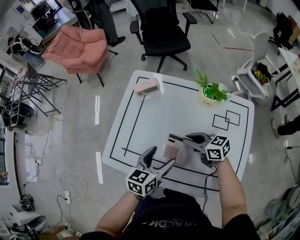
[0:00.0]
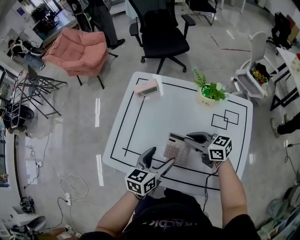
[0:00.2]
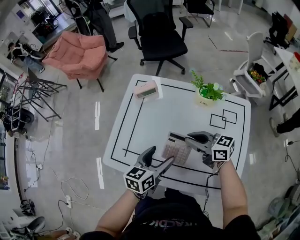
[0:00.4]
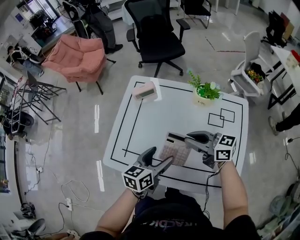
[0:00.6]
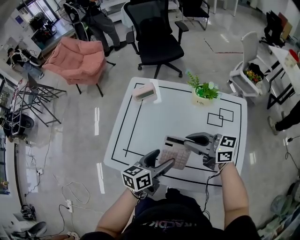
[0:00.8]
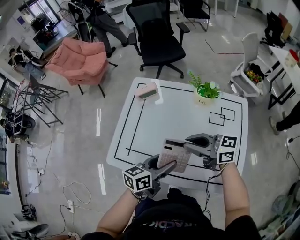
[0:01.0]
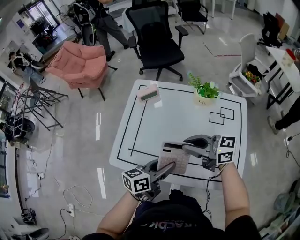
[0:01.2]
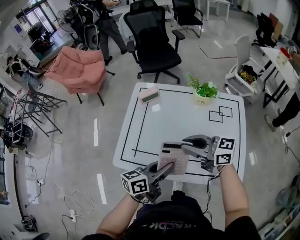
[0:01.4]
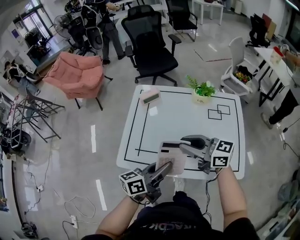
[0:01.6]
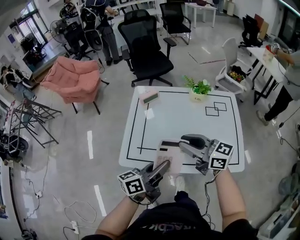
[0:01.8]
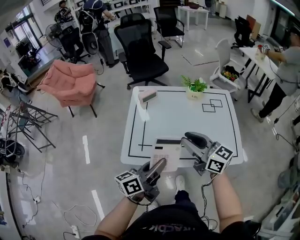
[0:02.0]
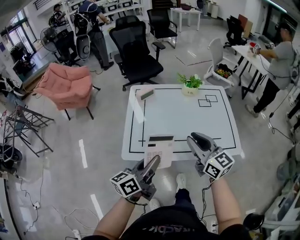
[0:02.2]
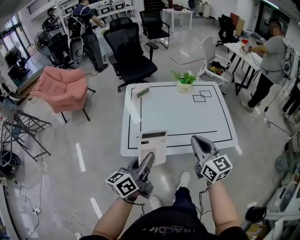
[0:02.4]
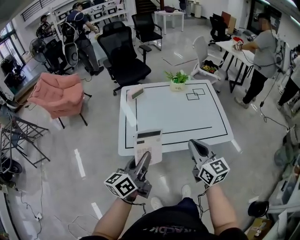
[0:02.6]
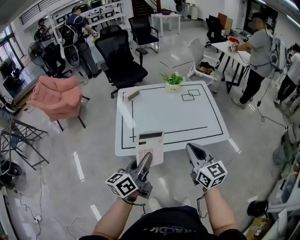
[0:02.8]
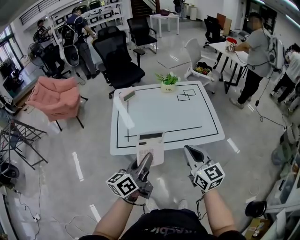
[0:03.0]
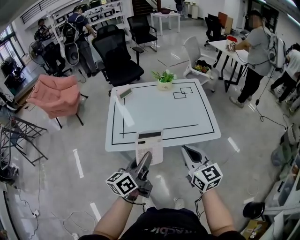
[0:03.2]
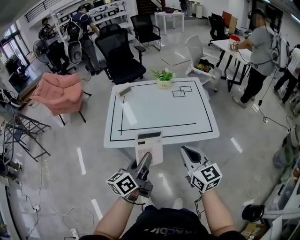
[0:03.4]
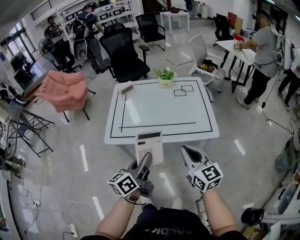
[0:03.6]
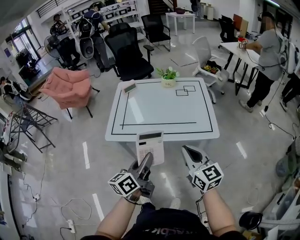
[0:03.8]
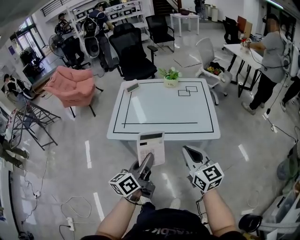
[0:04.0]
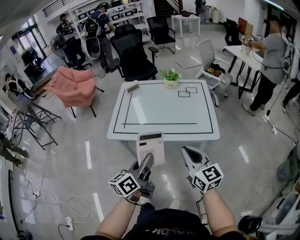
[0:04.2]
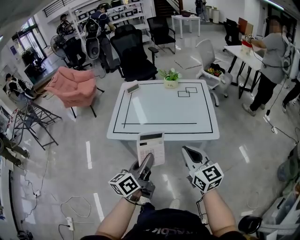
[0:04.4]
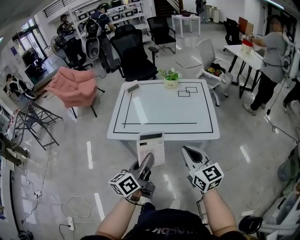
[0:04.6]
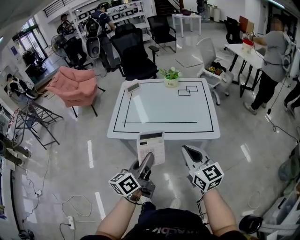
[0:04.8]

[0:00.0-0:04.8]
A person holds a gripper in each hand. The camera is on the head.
0:00.0 to 0:01.6: The right gripper is displaced upward by about 15 cm, and swivels some 20 degrees, while the left gripper moves roughly 15 cm, rotates some 40 degrees, and closes.
0:01.6 to 0:03.2: Both grippers move backward, approximately 20 cm. The right gripper turns by about 50 degrees.
0:03.2 to 0:04.8: The right gripper goes roughly 5 cm to the right. The left gripper shifts some 10 cm to the right and backward.

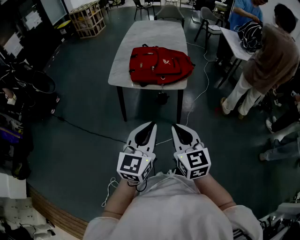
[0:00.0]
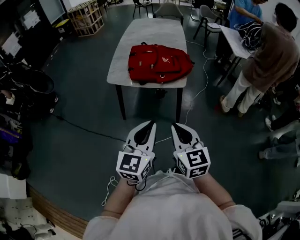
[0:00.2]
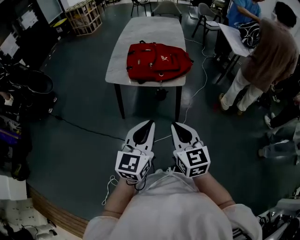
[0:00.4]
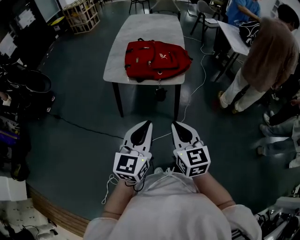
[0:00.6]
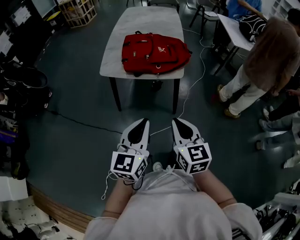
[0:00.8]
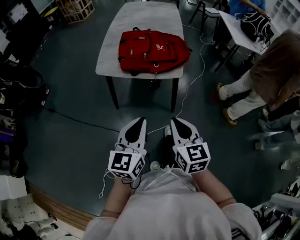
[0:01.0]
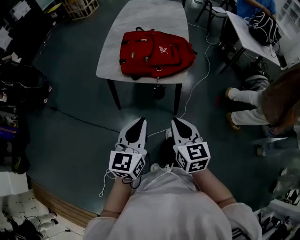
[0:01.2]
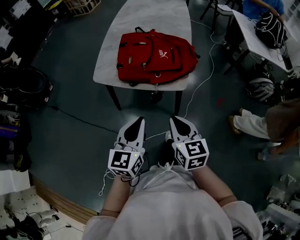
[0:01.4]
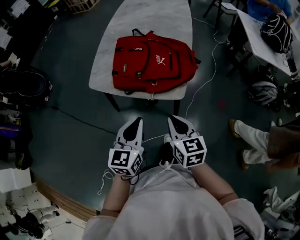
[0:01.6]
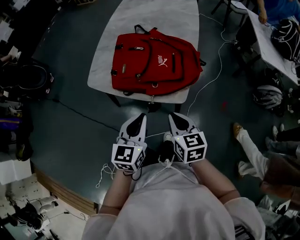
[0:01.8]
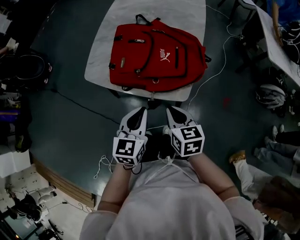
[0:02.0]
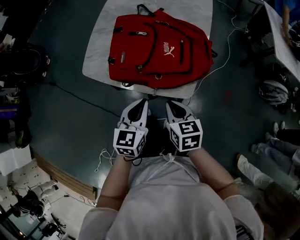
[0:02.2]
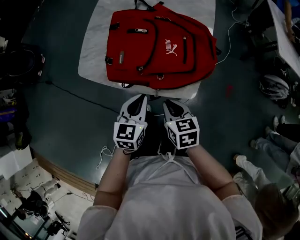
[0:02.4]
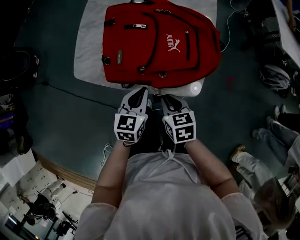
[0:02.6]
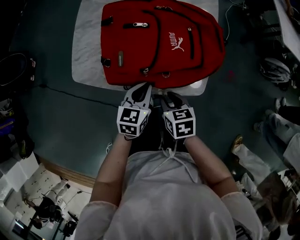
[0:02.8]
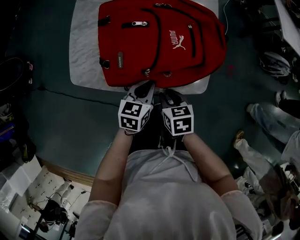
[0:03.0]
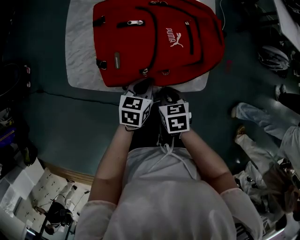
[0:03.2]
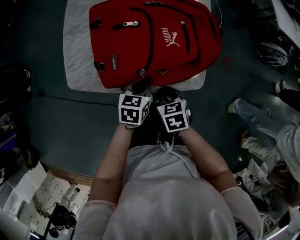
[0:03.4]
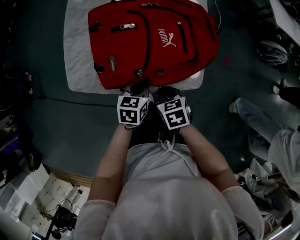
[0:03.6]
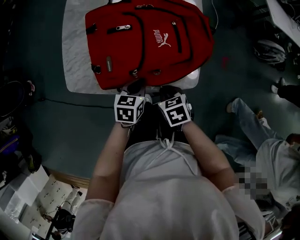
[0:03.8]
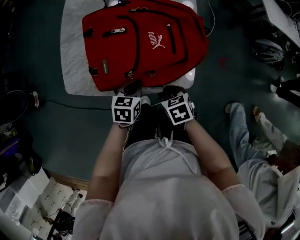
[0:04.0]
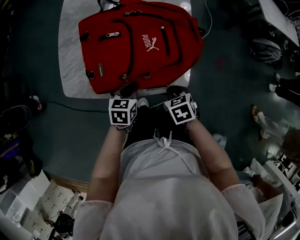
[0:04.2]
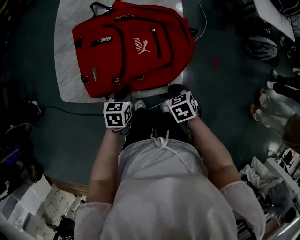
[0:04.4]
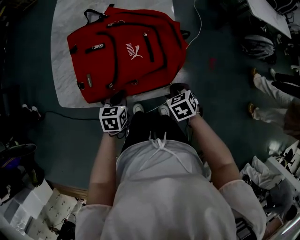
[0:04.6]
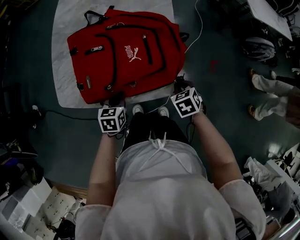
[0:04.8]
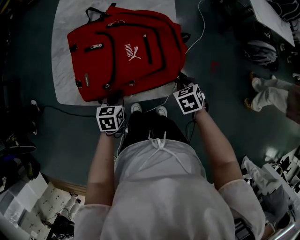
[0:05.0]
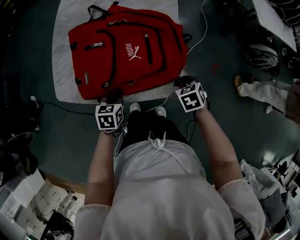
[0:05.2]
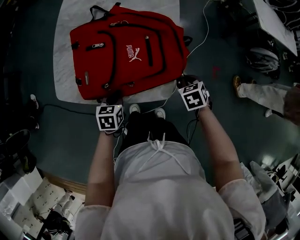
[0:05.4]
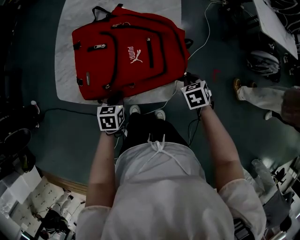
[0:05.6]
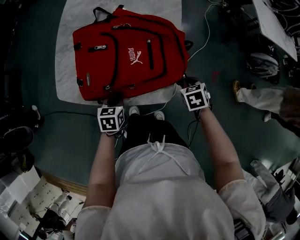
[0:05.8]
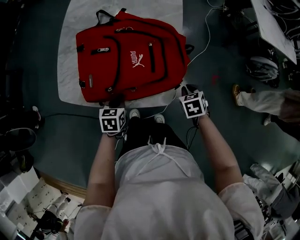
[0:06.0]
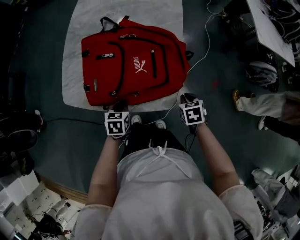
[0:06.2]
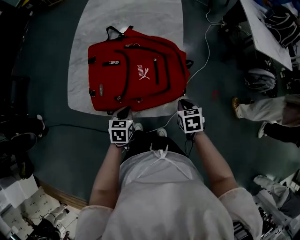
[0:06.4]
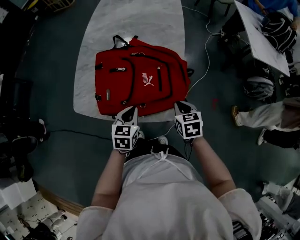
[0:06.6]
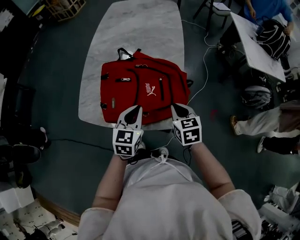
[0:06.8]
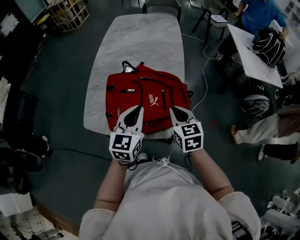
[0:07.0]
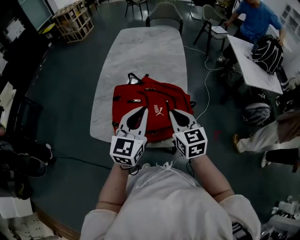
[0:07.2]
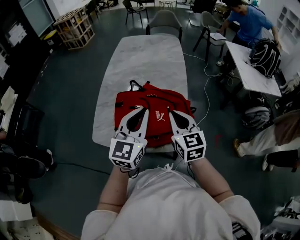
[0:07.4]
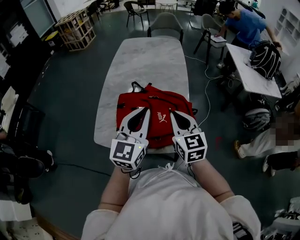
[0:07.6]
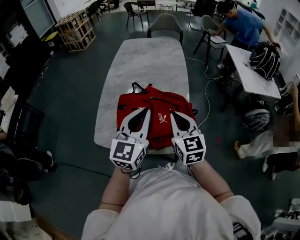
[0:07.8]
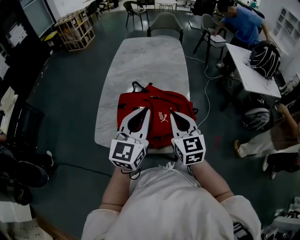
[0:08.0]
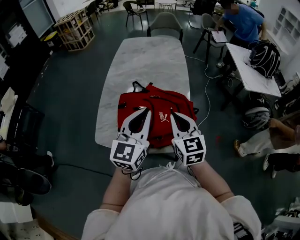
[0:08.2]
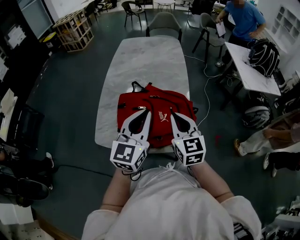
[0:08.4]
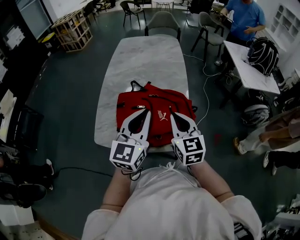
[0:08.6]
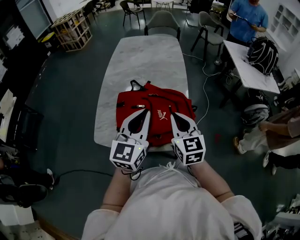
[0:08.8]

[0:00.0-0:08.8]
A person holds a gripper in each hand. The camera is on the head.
0:00.0 to 0:01.4: Both grippers travel together forward and downward, some 20 cm.
0:01.4 to 0:03.0: The right gripper shifts about 30 cm downward and forward, and turns by approximately 30 degrees, while the left gripper goes about 35 cm forward and downward, and rotates some 30 degrees.
0:03.0 to 0:04.4: The right gripper shifts about 15 cm to the right.
0:04.4 to 0:05.8: The right gripper goes roughly 15 cm to the right and forward.
0:05.8 to 0:07.4: The left gripper shifts approximately 40 cm upward, and tips its fingers upward by roughly 50 degrees. Meanwhile the right gripper is displaced upward and to the left by some 35 cm, and angles its fingers upward, by some 50 degrees.
0:07.4 to 0:08.8: There are only small adjustments of the grippers.

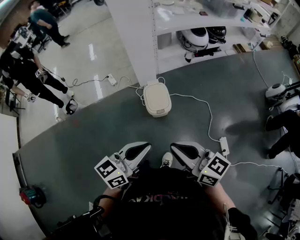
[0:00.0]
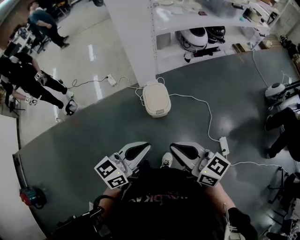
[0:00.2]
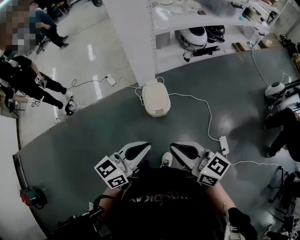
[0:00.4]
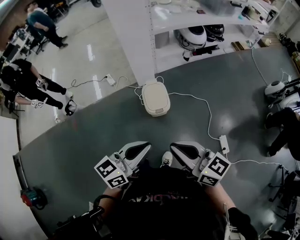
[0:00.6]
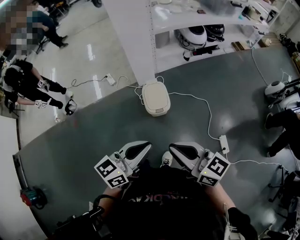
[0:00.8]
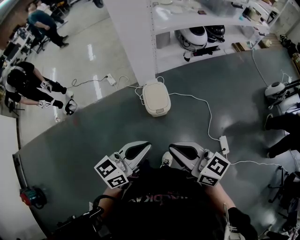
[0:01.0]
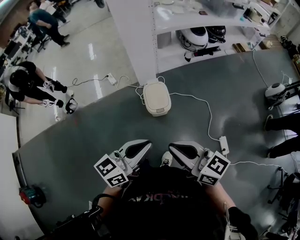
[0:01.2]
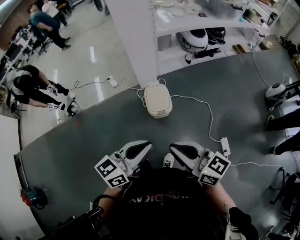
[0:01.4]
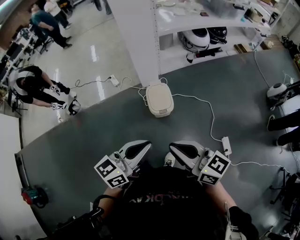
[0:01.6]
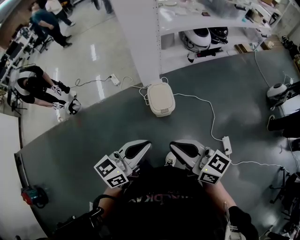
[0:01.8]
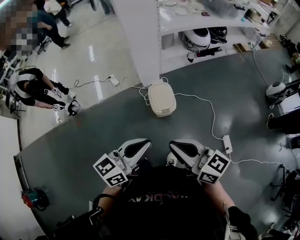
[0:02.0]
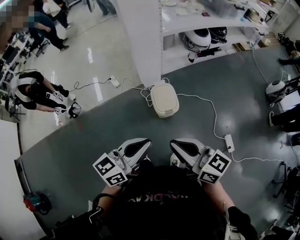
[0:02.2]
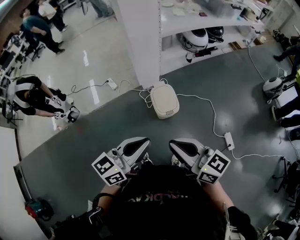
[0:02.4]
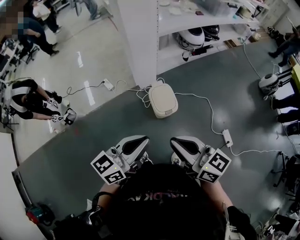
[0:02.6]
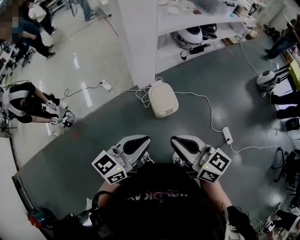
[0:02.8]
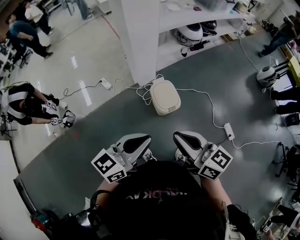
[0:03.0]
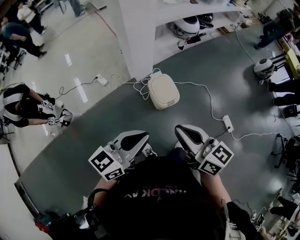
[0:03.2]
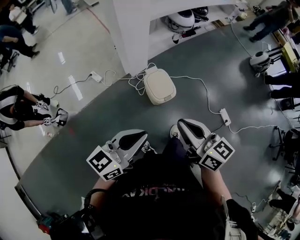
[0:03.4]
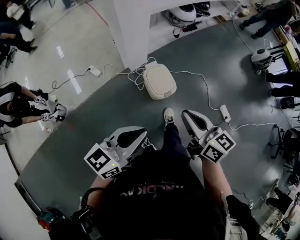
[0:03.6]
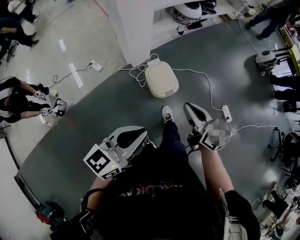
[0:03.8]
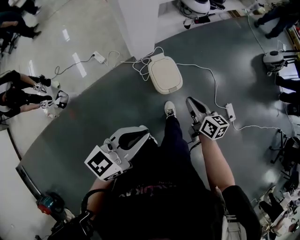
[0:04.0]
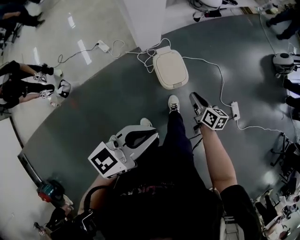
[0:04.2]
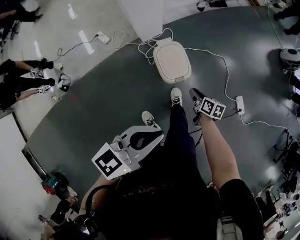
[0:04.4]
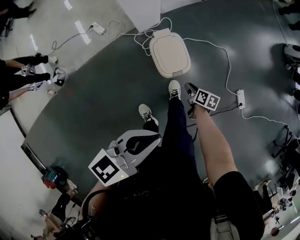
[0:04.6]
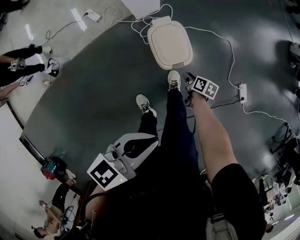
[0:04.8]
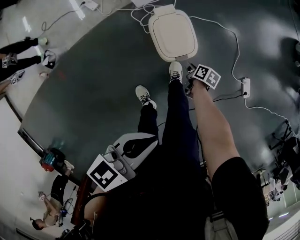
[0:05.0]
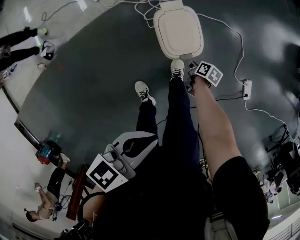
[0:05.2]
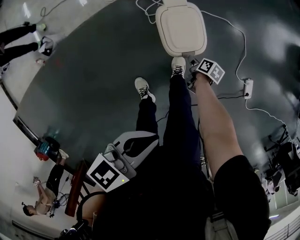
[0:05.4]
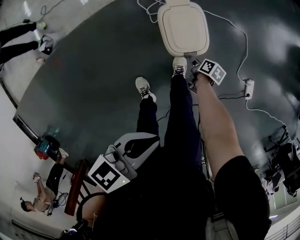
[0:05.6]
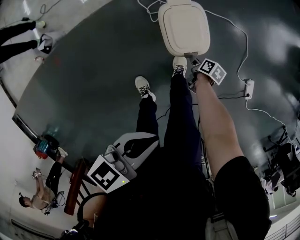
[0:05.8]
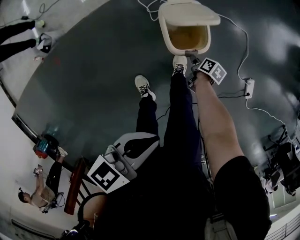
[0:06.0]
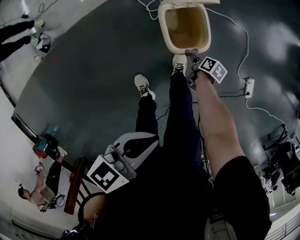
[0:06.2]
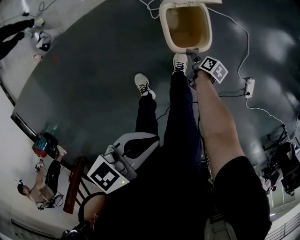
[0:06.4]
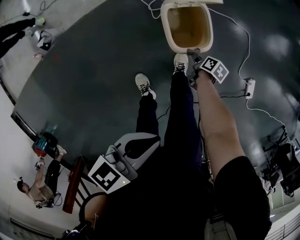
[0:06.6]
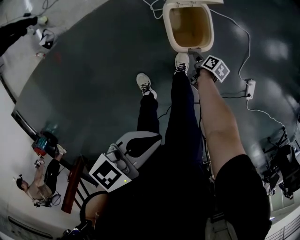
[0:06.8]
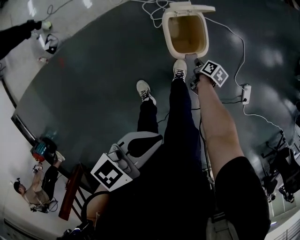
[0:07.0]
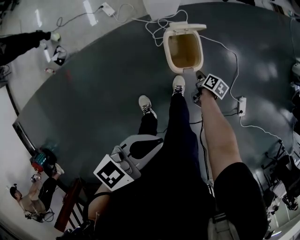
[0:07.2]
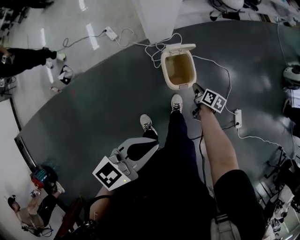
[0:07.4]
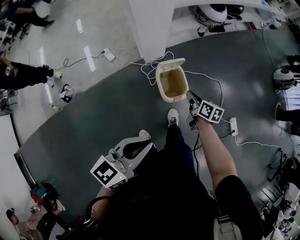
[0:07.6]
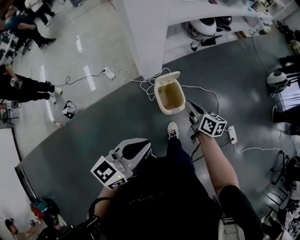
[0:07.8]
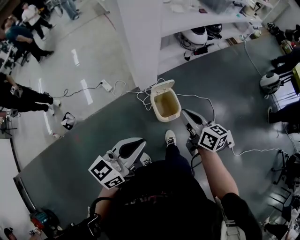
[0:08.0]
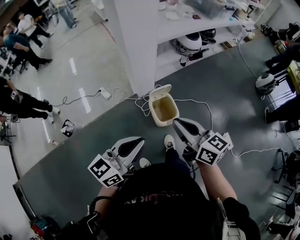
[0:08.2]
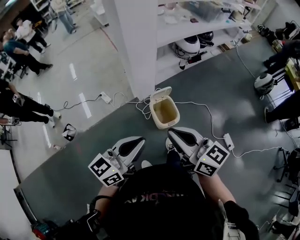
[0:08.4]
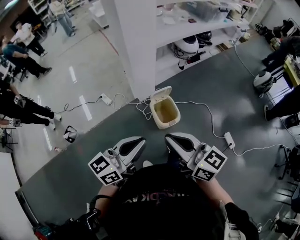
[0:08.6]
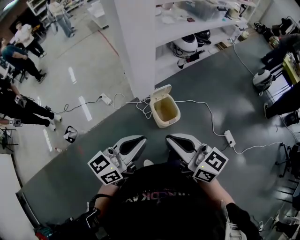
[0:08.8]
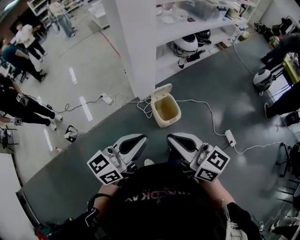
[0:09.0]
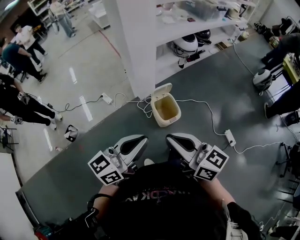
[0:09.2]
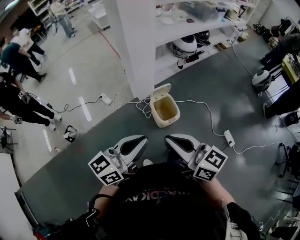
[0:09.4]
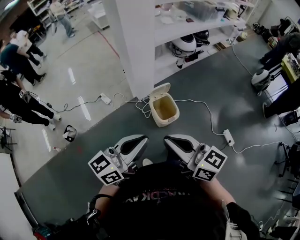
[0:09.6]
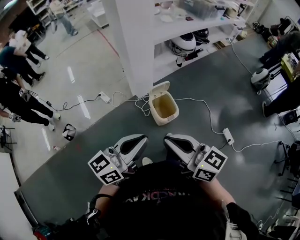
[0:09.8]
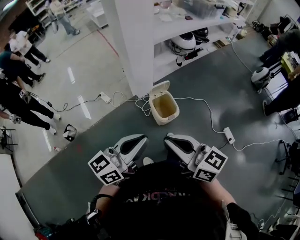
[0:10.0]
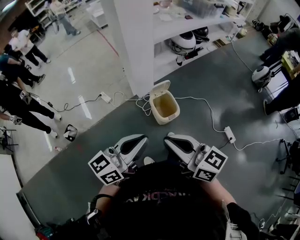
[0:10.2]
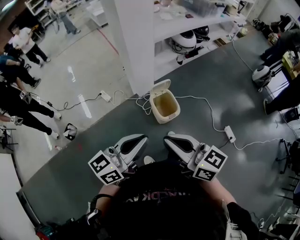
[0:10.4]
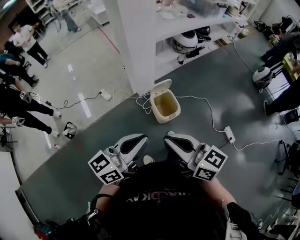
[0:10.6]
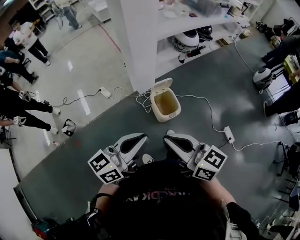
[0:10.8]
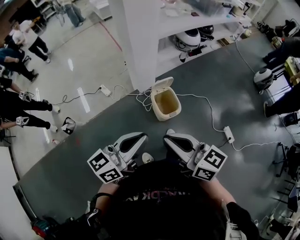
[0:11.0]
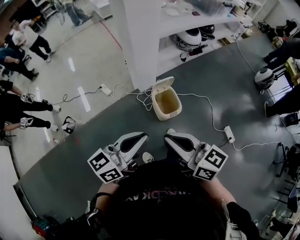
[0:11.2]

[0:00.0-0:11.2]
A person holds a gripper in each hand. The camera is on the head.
0:00.0 to 0:01.6: There are only small adjustments of the grippers.
0:01.6 to 0:03.2: The right gripper shifts about 20 cm to the left and forward, and swivels about 20 degrees, while the left gripper travels to the left by roughly 20 cm.
0:03.2 to 0:04.8: The left gripper is displaced downward, forward and to the right by some 20 cm, and changes its angle by about 20 degrees. The right gripper shifts about 60 cm downward, tips its fingers downward by about 50 degrees, and opens its fingers.
0:04.8 to 0:06.4: The grippers both shift downward by some 10 cm.
0:06.4 to 0:08.0: The right gripper shifts roughly 60 cm upward, tilts its fingers approximately 50 degrees upward, and closes. Meanwhile the left gripper goes approximately 25 cm upward, and swivels some 30 degrees.
0:08.0 to 0:09.6: The right gripper shifts roughly 25 cm backward, upward and to the left. The left gripper shifts about 5 cm backward.
0:09.6 to 0:11.2: The grippers stay close to where they were, moving slightly.
